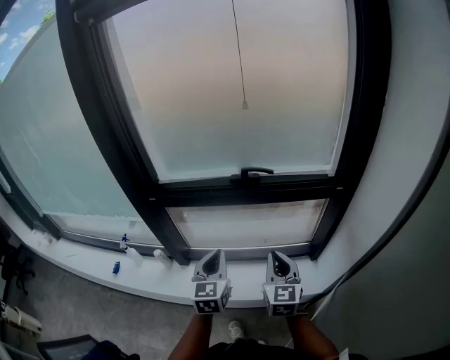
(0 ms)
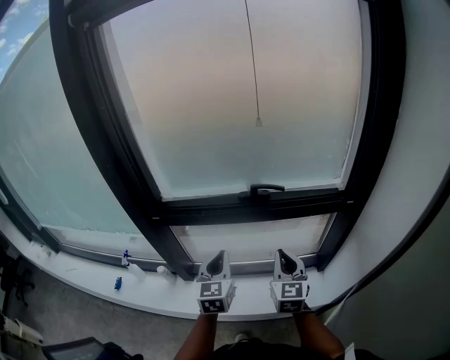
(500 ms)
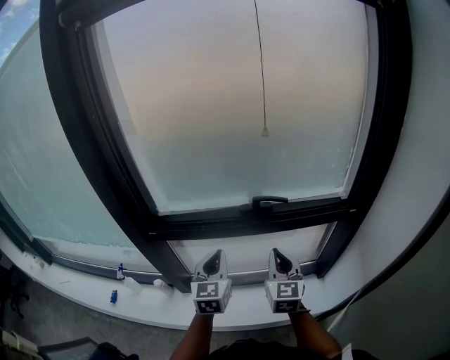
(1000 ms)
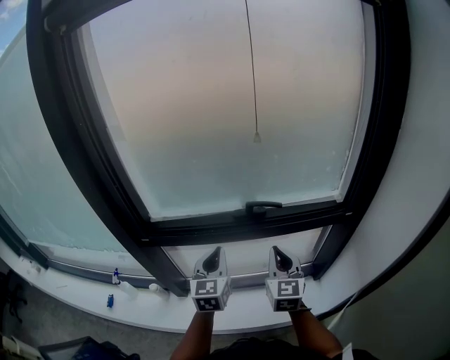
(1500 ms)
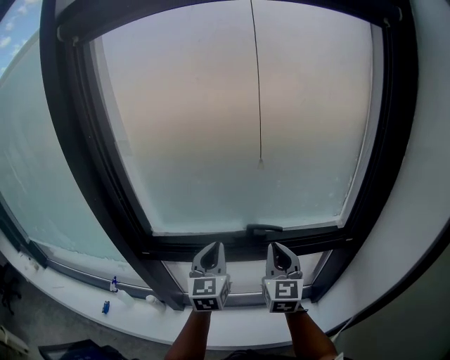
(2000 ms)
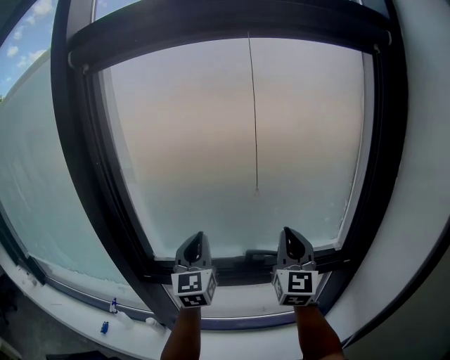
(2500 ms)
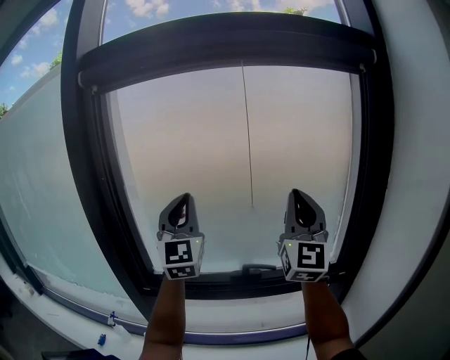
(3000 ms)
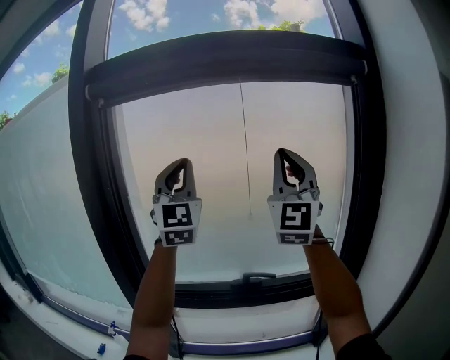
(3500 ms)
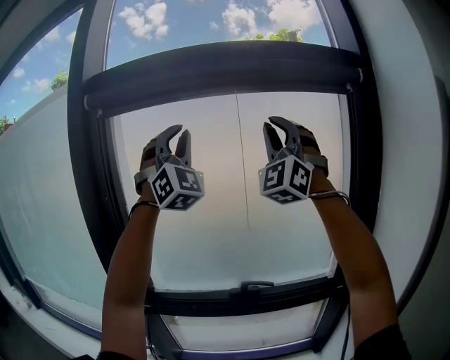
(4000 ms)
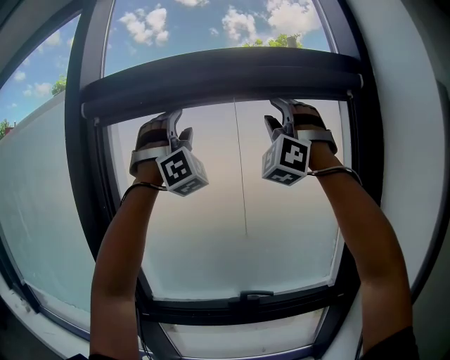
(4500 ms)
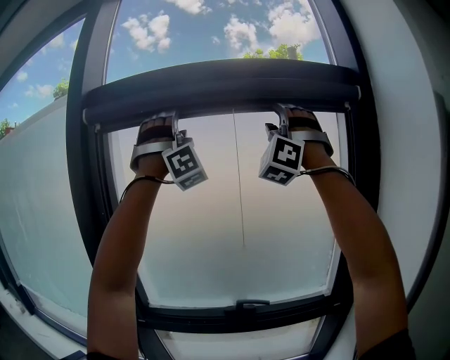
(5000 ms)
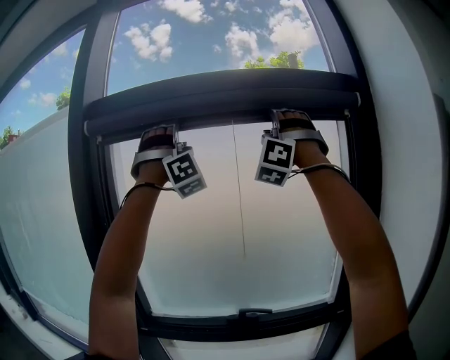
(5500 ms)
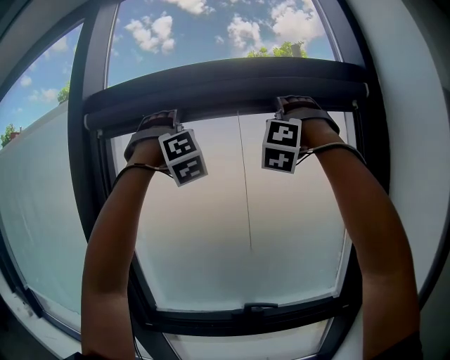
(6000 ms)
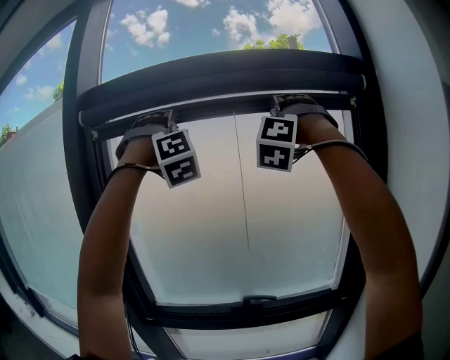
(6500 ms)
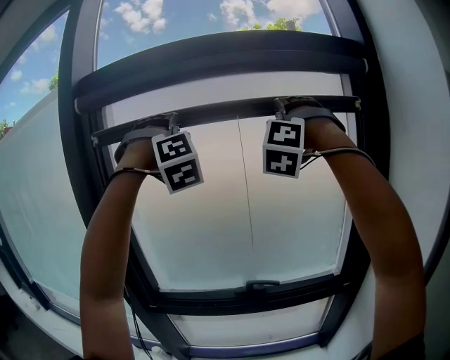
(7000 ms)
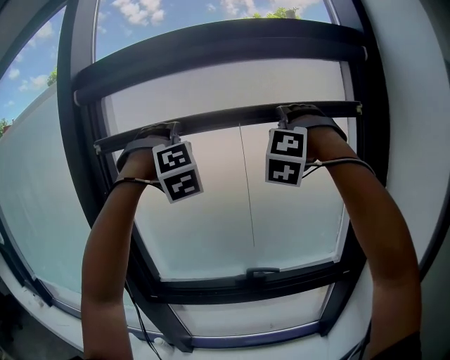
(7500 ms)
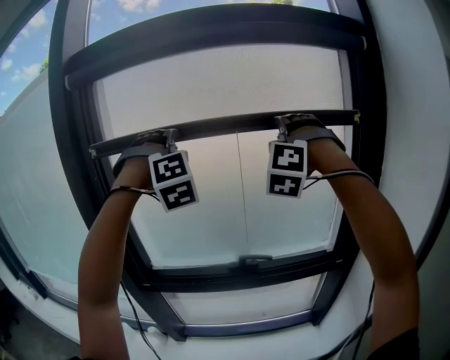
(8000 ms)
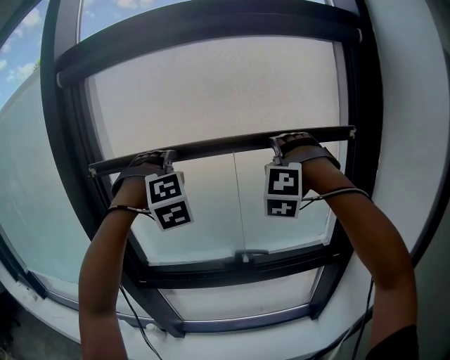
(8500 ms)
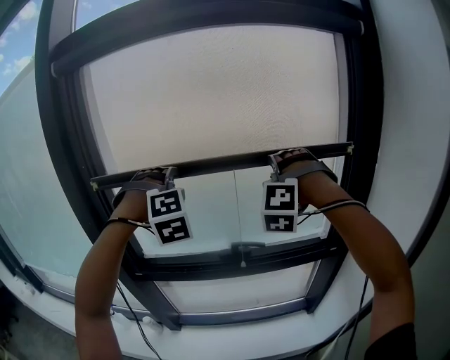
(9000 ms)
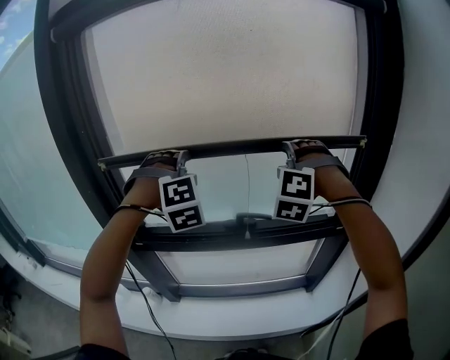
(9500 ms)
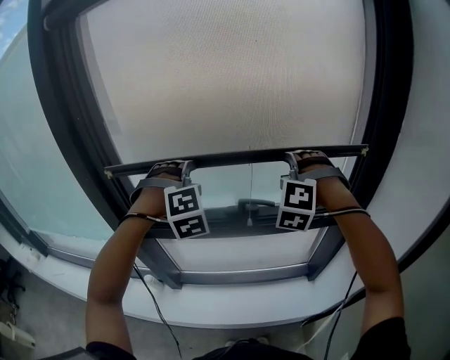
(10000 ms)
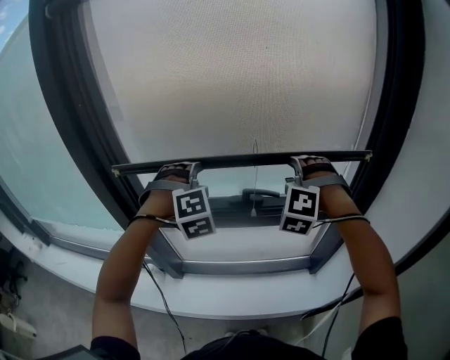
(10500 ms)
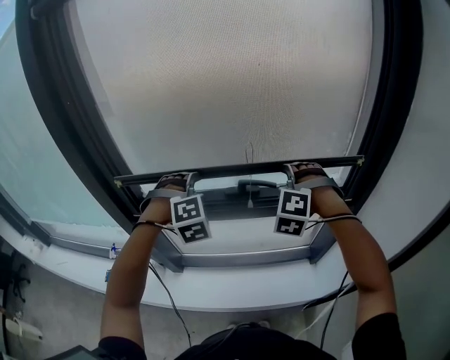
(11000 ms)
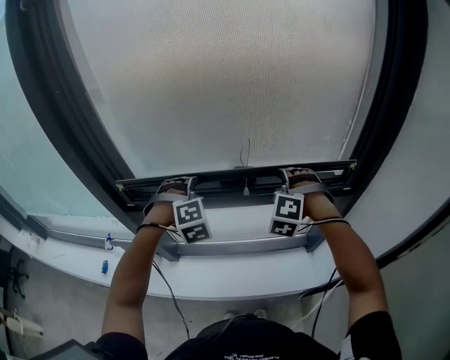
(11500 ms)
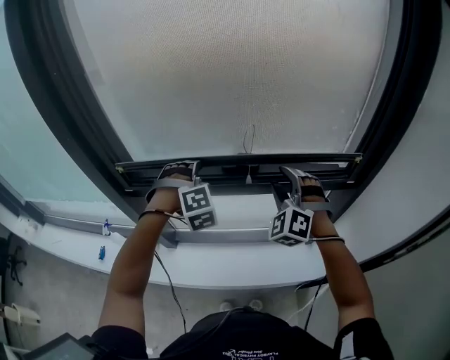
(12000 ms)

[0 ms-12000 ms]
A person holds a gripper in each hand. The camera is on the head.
0 ms to 2000 ms: Both grippers travel together forward and upward, approximately 20 cm.
2000 ms to 4000 ms: Both grippers travel together upward, approximately 50 cm. The left gripper rolls clockwise, seen from behind, by about 70 degrees. The right gripper twists about 60 degrees counterclockwise, seen from behind.
4000 ms to 6000 ms: The grippers both shift upward and forward by some 10 cm. The left gripper rotates some 40 degrees, and opens up, while the right gripper rotates approximately 40 degrees, and opens up.
6000 ms to 8000 ms: Both grippers travel together downward, about 20 cm. The left gripper turns by some 20 degrees.
8000 ms to 10000 ms: The grippers both shift downward by about 25 cm. The right gripper rotates about 20 degrees, while the left gripper turns by approximately 20 degrees.
10000 ms to 12000 ms: Both grippers travel together downward, some 15 cm. The right gripper turns by roughly 20 degrees.

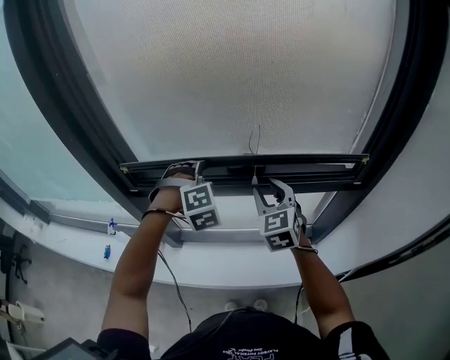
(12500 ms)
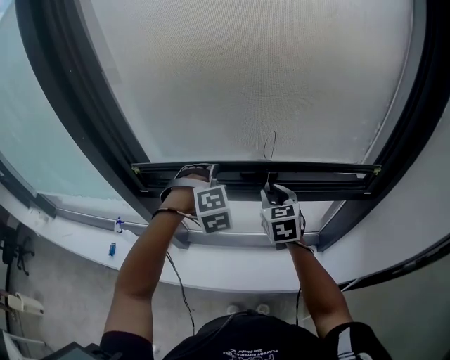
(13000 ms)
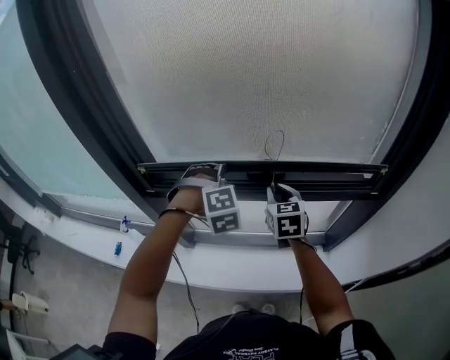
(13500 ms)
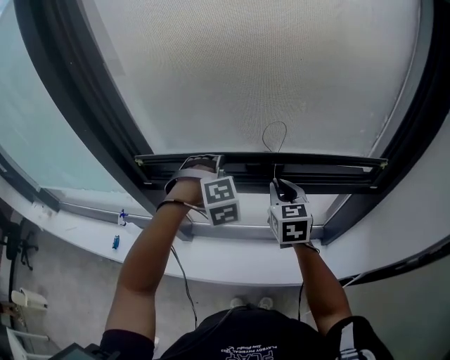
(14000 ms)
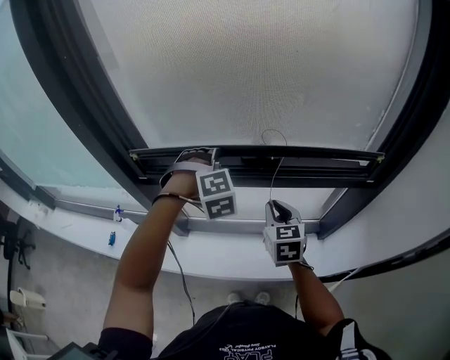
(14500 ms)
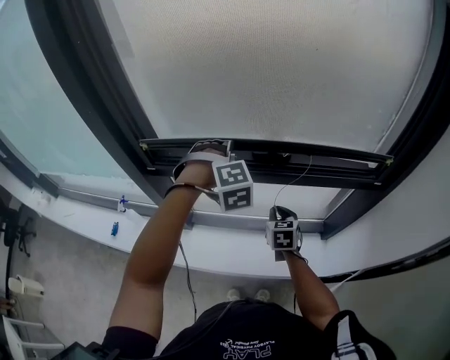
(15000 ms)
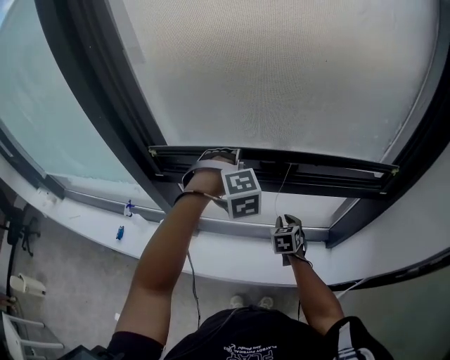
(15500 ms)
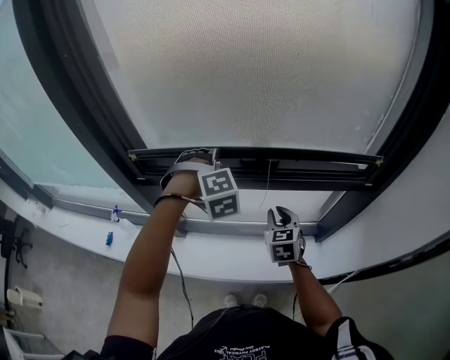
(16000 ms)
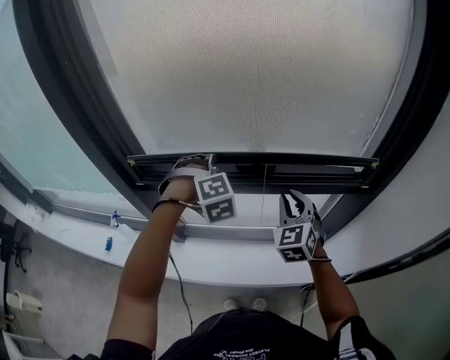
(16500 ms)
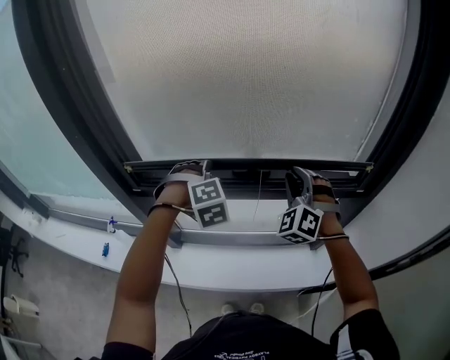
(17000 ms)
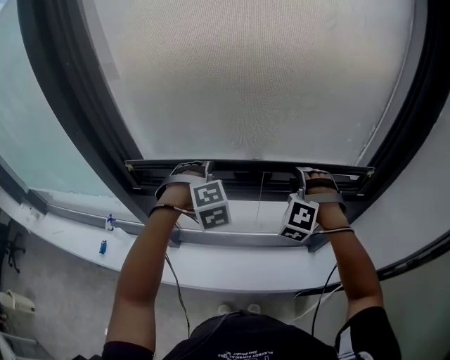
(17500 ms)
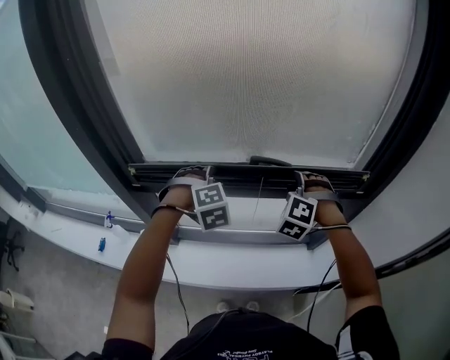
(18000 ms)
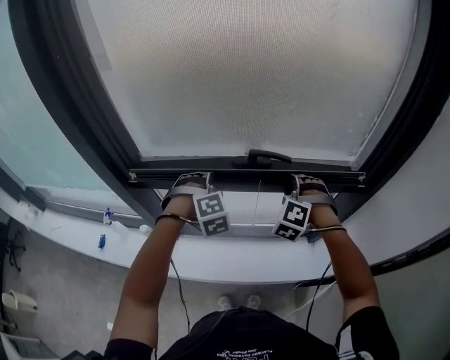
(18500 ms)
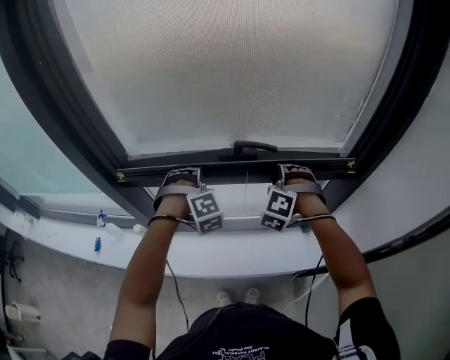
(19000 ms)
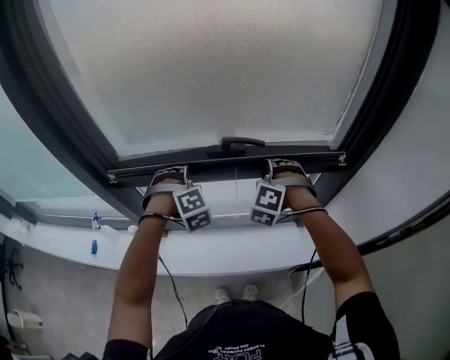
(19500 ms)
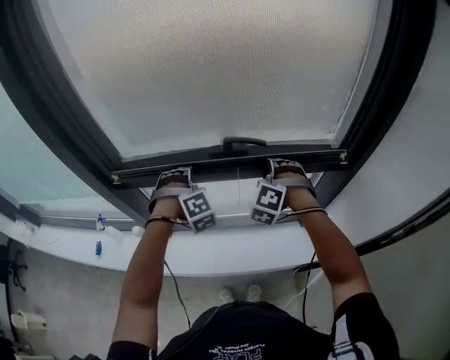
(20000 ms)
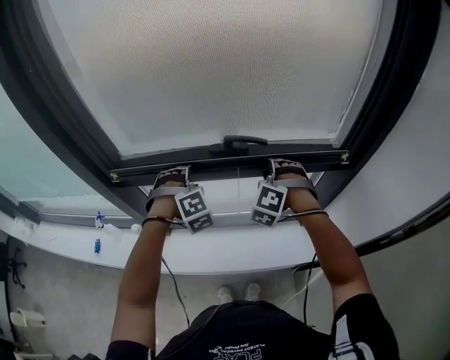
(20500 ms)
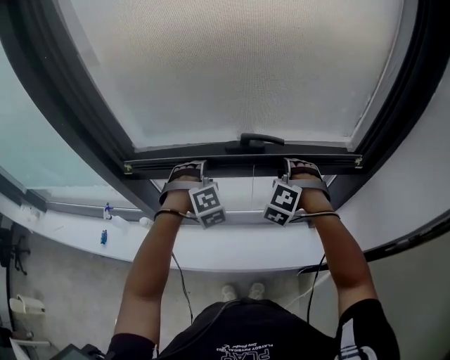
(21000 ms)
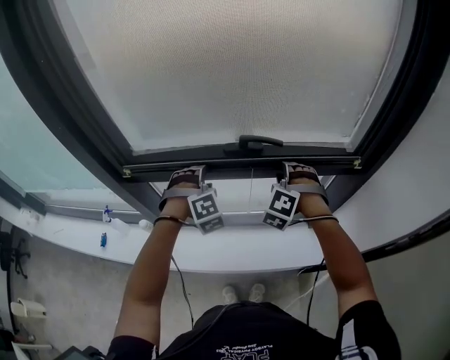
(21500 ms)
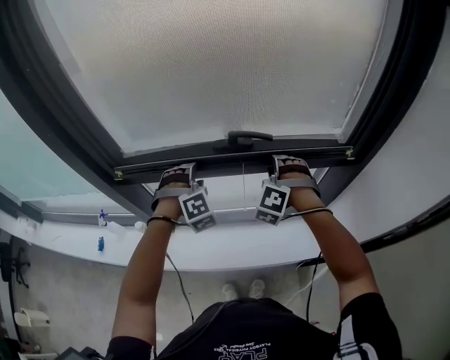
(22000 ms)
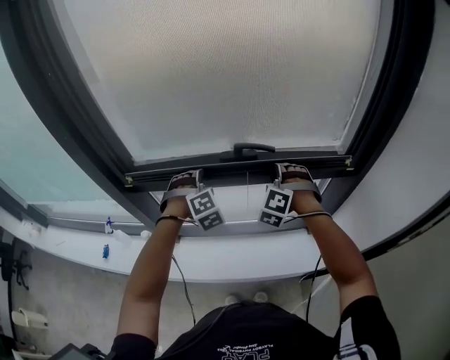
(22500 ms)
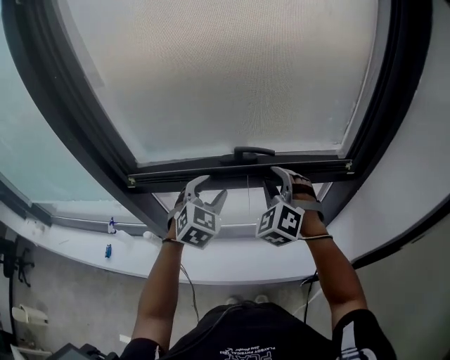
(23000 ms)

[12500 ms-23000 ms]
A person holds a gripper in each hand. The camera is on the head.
12500 ms to 14500 ms: The right gripper is displaced downward by some 10 cm, swivels approximately 20 degrees, and closes up.
14500 ms to 16500 ms: The right gripper shifts roughly 5 cm to the right, travels downward and back again, roughly 15 cm each way, and swivels some 30 degrees.
16500 ms to 19000 ms: The right gripper shifts by some 5 cm, and rolls counterclockwise, seen from behind, by about 50 degrees, while the left gripper moves downward, about 5 cm.
19000 ms to 21000 ms: The grippers move only a little.
21000 ms to 23000 ms: The right gripper heads upward, covering roughly 10 cm, and rotates some 30 degrees. The left gripper travels upward and to the right by approximately 10 cm, and swivels roughly 50 degrees.

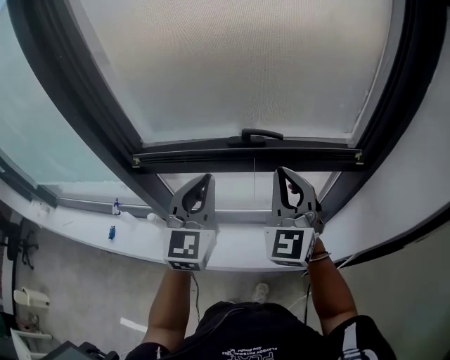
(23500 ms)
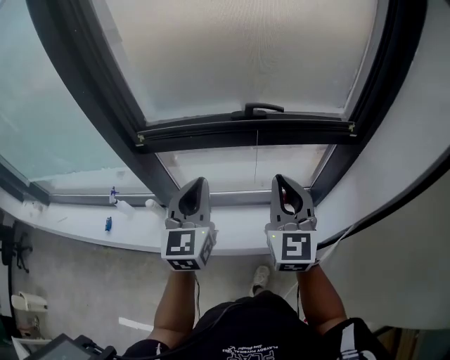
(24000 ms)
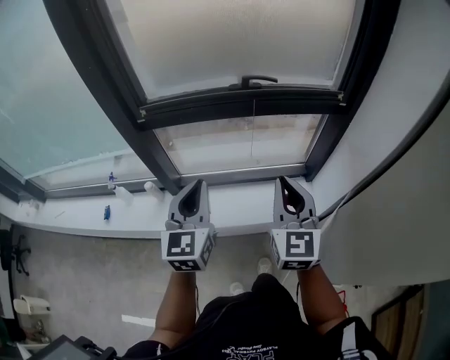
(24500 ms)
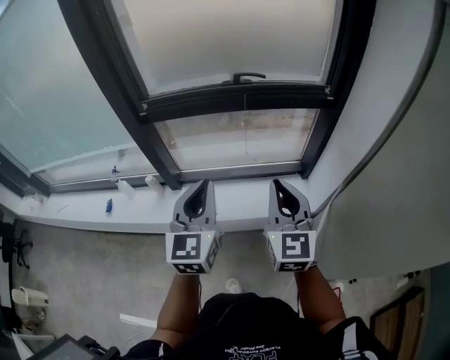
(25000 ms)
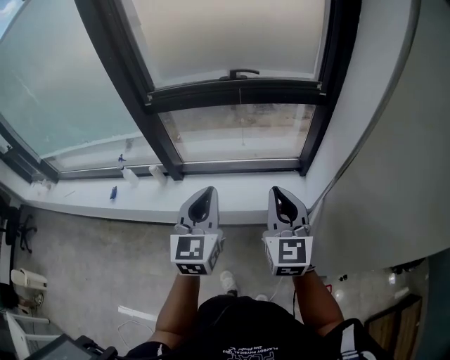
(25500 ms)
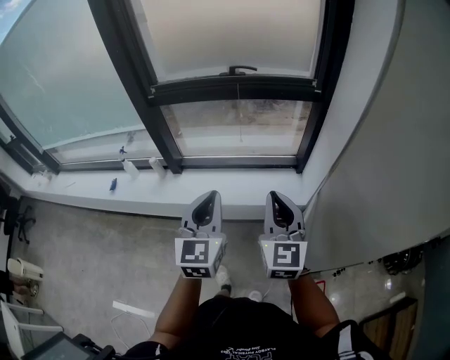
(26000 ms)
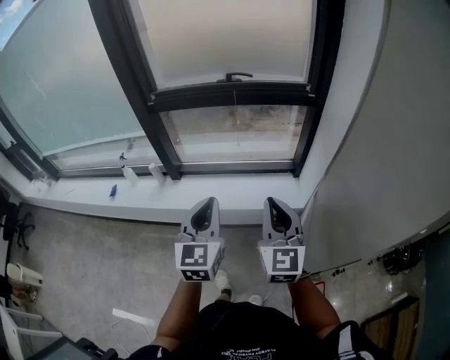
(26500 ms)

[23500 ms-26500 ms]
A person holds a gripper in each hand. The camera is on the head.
23500 ms to 25000 ms: Both grippers move backward, some 25 cm. The right gripper turns by some 20 degrees.
25000 ms to 26500 ms: The right gripper moves backward, roughly 15 cm; the left gripper is displaced backward and to the right by some 20 cm.

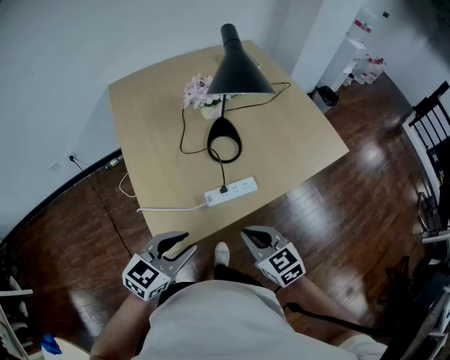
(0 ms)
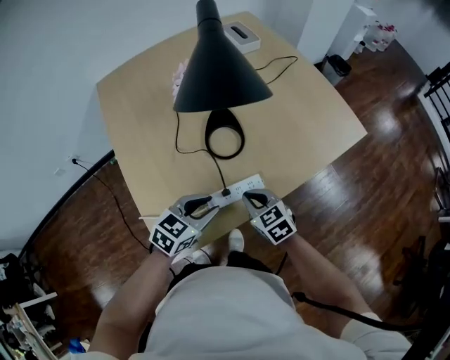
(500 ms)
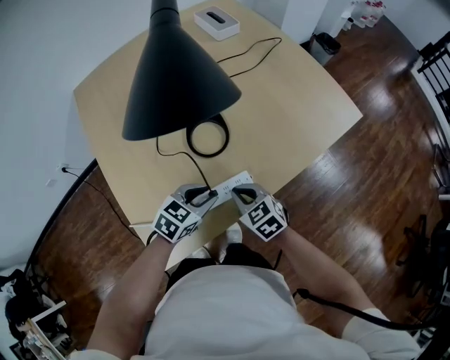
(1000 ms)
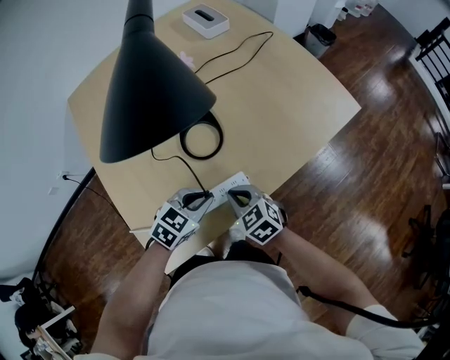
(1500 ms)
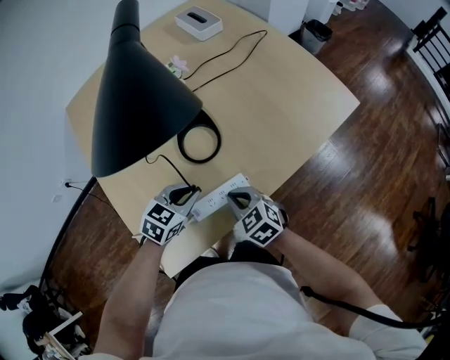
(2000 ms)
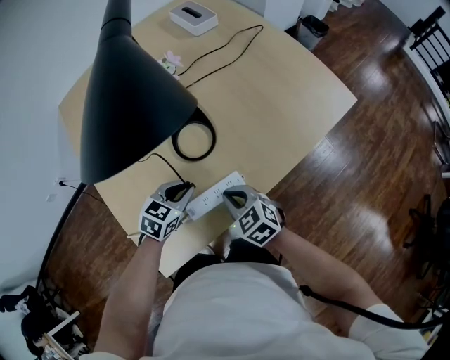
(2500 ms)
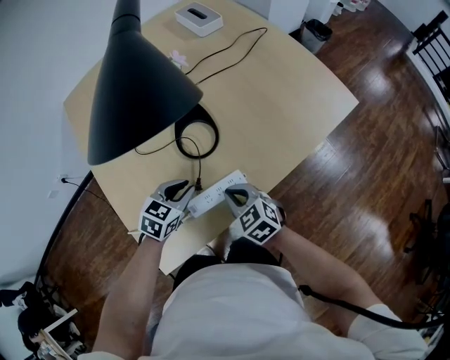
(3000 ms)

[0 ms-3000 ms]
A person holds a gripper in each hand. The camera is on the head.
0 ms to 1500 ms: The two grippers go roughly 25 cm forward and downward. The left gripper swivels some 20 degrees.
1500 ms to 3000 ms: The left gripper is displaced to the left by some 5 cm.
